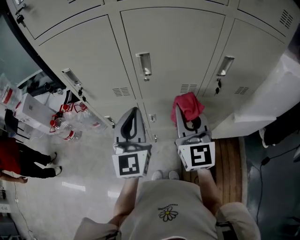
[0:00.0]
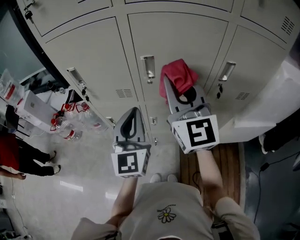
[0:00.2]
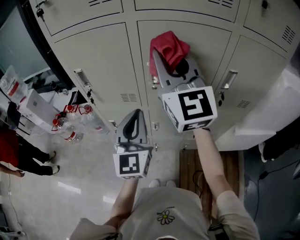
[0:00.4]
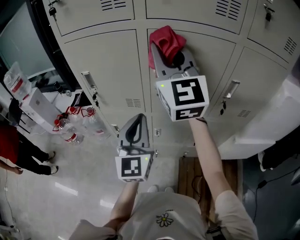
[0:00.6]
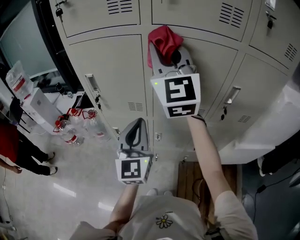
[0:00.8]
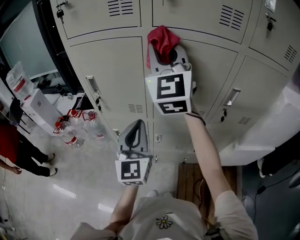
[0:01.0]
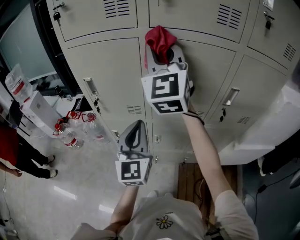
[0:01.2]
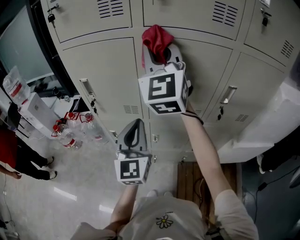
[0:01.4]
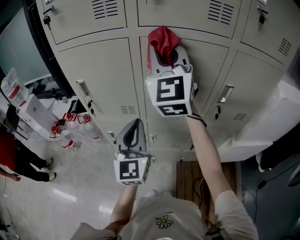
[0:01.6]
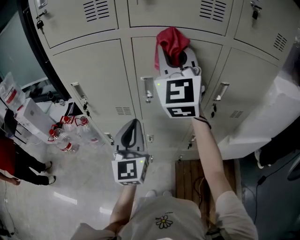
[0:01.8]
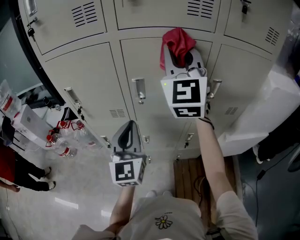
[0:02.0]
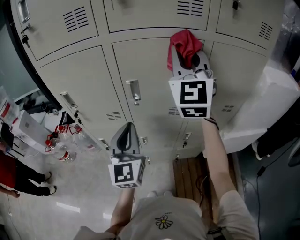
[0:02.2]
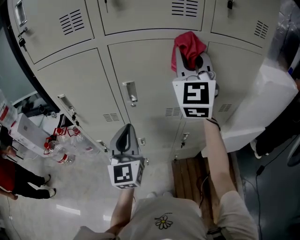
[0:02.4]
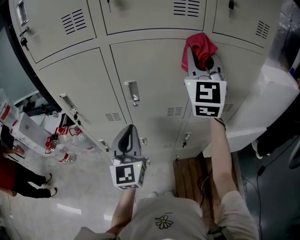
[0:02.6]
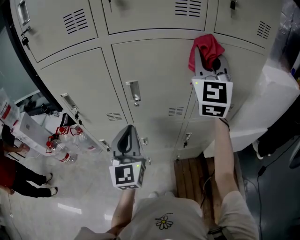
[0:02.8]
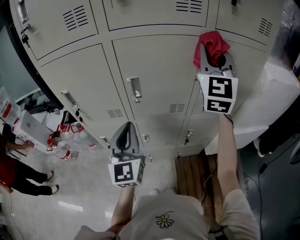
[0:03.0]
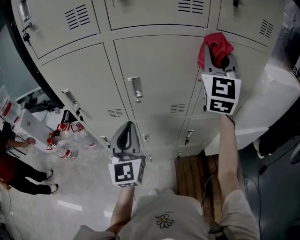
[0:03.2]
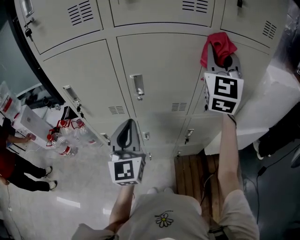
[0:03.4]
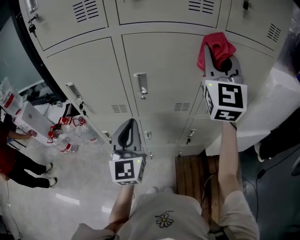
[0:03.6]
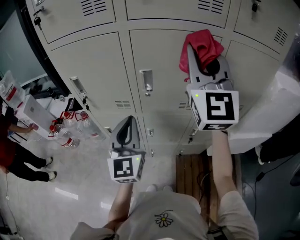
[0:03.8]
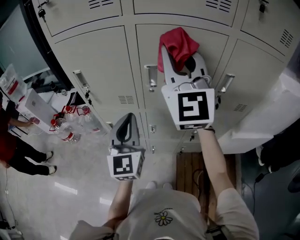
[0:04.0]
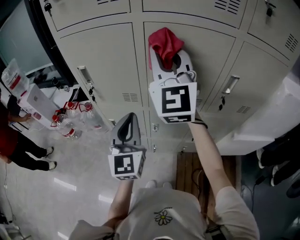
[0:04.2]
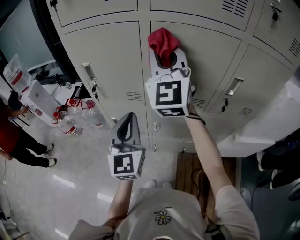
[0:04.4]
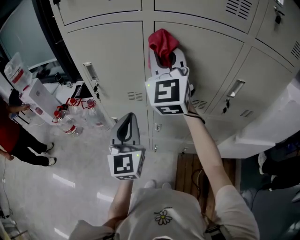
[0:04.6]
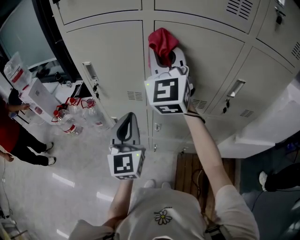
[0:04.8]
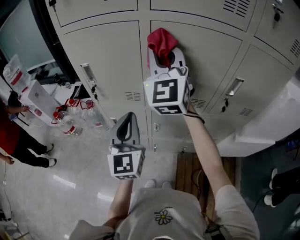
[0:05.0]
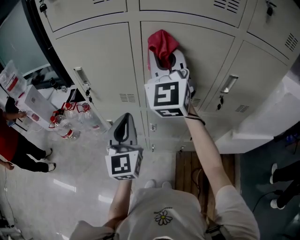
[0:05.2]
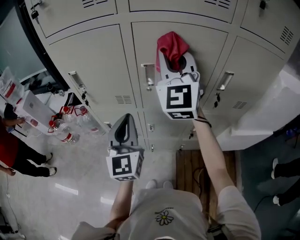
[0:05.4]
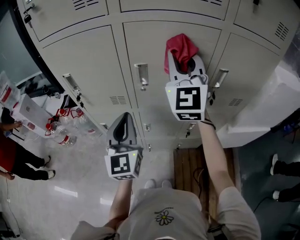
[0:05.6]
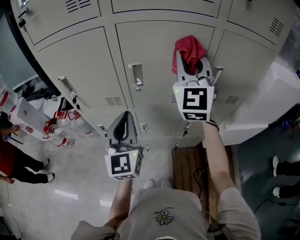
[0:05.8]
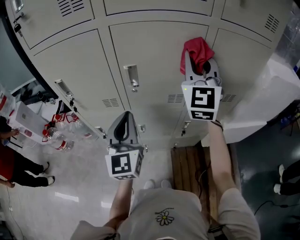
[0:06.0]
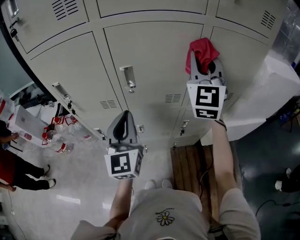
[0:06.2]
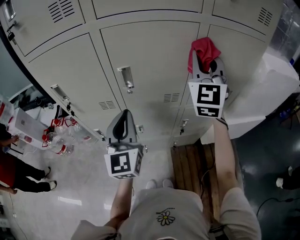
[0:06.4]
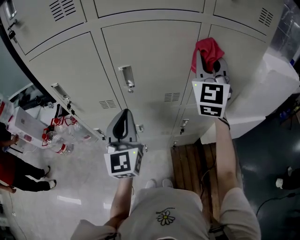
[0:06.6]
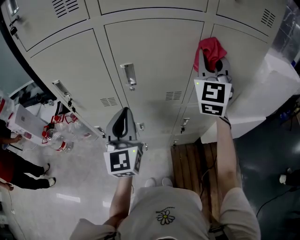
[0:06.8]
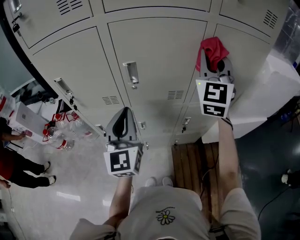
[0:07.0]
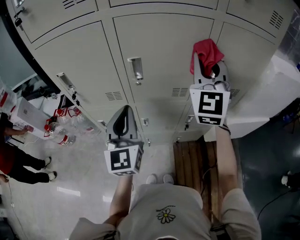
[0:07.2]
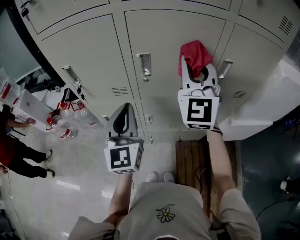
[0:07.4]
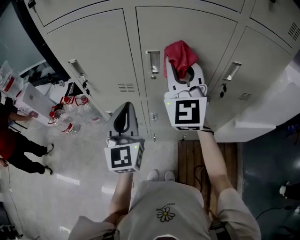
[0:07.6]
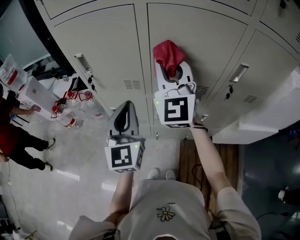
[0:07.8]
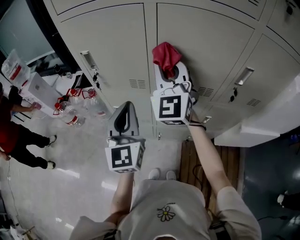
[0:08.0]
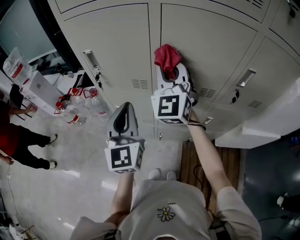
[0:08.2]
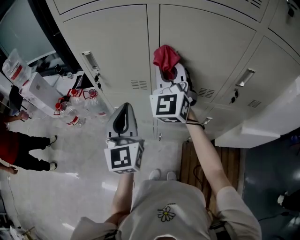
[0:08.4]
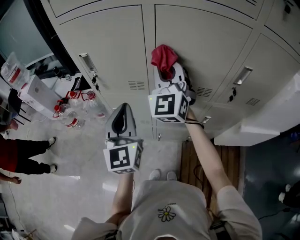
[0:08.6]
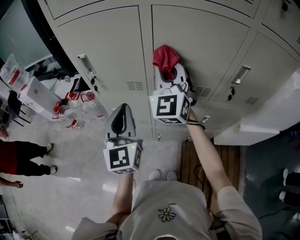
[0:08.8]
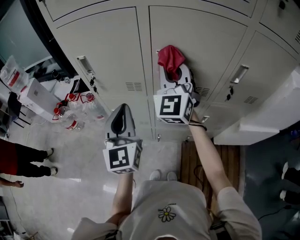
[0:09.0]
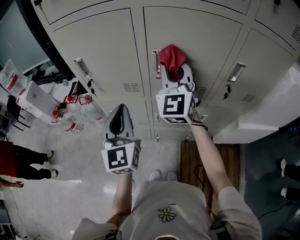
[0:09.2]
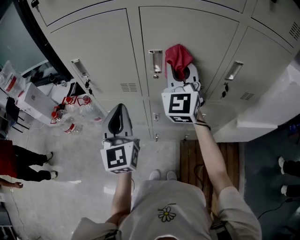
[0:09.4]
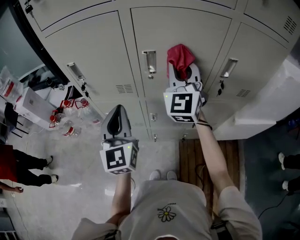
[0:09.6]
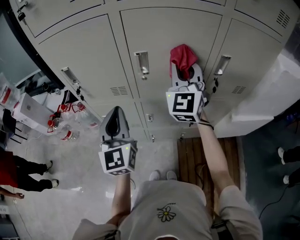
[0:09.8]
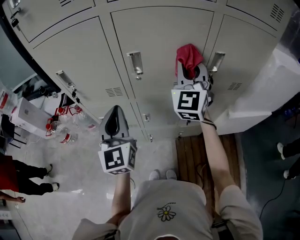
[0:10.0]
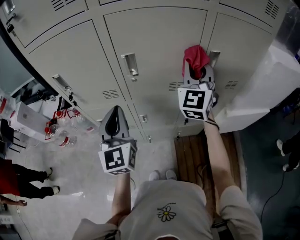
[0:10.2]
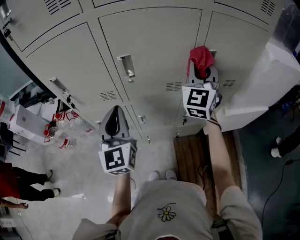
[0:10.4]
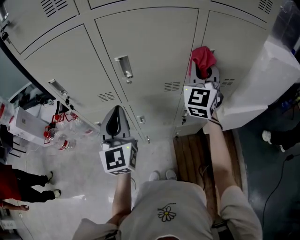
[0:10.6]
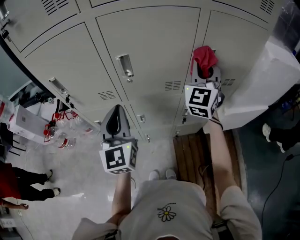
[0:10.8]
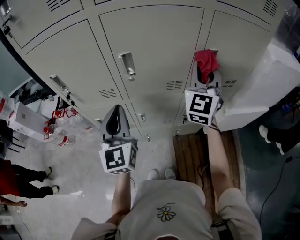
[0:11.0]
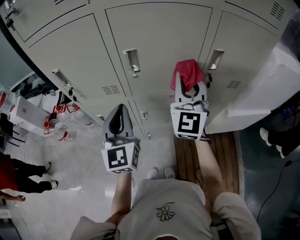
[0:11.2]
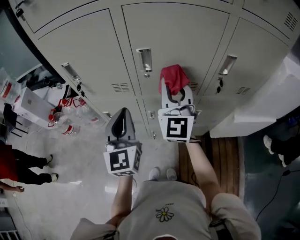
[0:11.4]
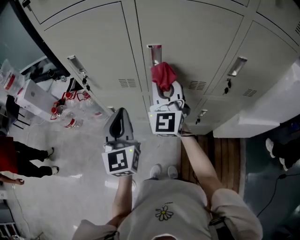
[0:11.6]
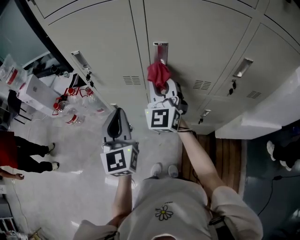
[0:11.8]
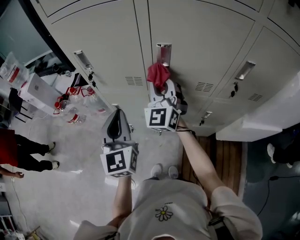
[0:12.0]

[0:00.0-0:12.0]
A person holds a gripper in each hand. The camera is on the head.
0:00.0 to 0:01.6: The right gripper goes some 25 cm upward and forward, and swivels approximately 20 degrees.
0:01.6 to 0:03.0: The right gripper heads to the right, covering some 20 cm, and swivels approximately 20 degrees.
0:03.0 to 0:04.4: The left gripper heads to the left, covering roughly 5 cm, while the right gripper goes roughly 25 cm to the left, and swivels roughly 20 degrees.
0:04.4 to 0:06.0: The right gripper is displaced to the right by about 20 cm; the left gripper shifts roughly 5 cm to the right.
0:06.0 to 0:07.6: The right gripper travels to the left by approximately 15 cm, while the left gripper heads to the left, covering some 5 cm.
0:07.6 to 0:09.0: The right gripper moves roughly 5 cm.
0:09.0 to 0:10.4: The right gripper heads to the right, covering roughly 20 cm, and rotates some 20 degrees; the left gripper goes about 5 cm to the right.
0:10.4 to 0:12.0: The left gripper travels to the left by approximately 10 cm. The right gripper is displaced to the left by about 25 cm, and changes its angle by approximately 30 degrees.

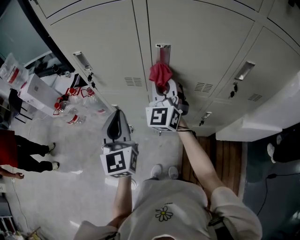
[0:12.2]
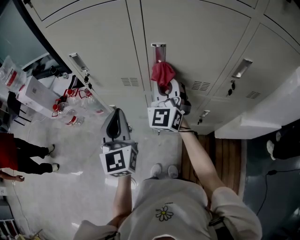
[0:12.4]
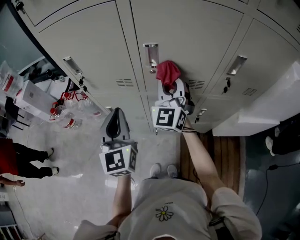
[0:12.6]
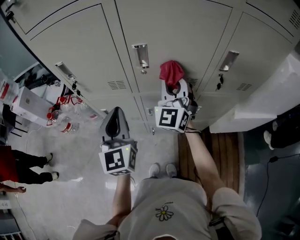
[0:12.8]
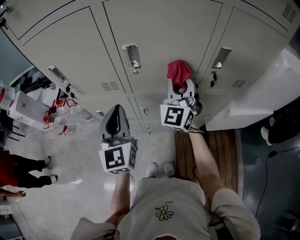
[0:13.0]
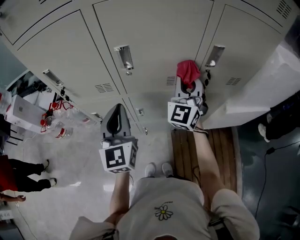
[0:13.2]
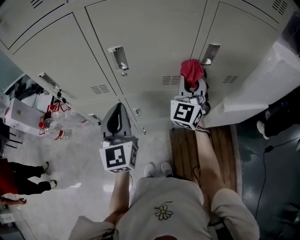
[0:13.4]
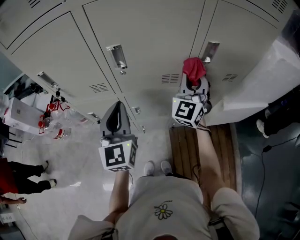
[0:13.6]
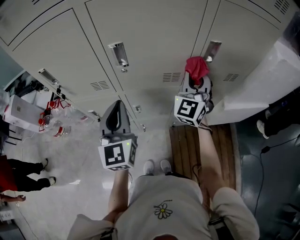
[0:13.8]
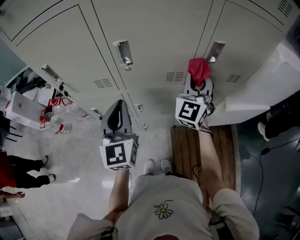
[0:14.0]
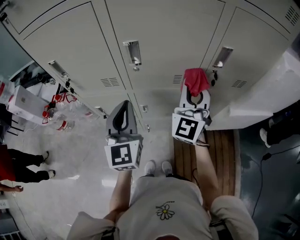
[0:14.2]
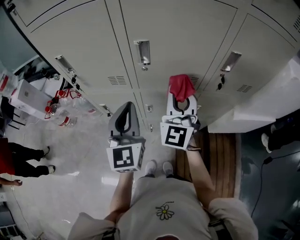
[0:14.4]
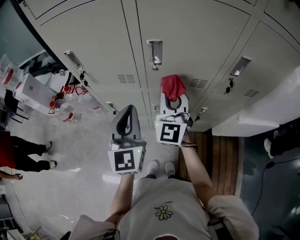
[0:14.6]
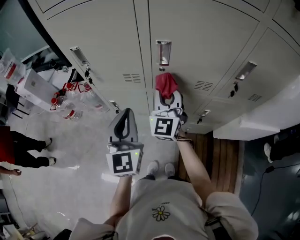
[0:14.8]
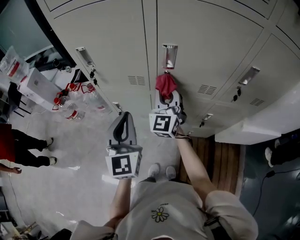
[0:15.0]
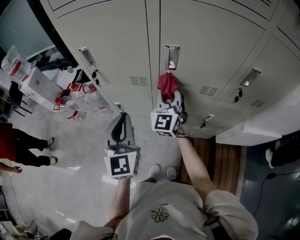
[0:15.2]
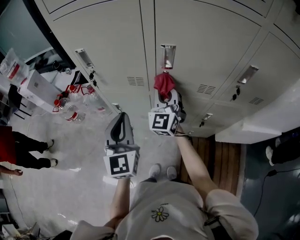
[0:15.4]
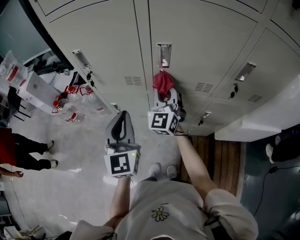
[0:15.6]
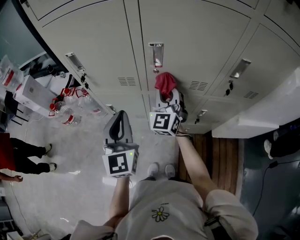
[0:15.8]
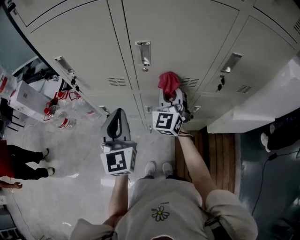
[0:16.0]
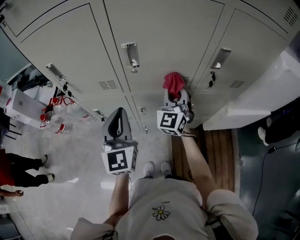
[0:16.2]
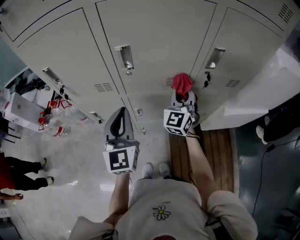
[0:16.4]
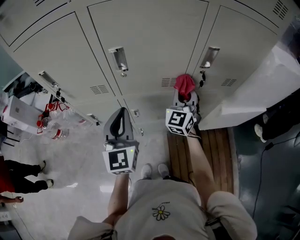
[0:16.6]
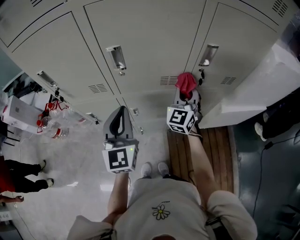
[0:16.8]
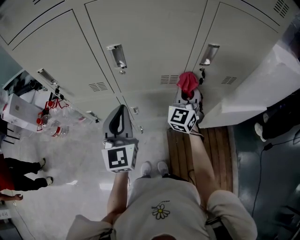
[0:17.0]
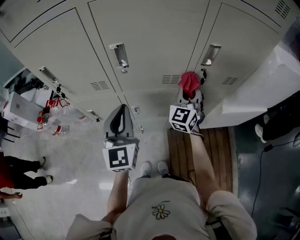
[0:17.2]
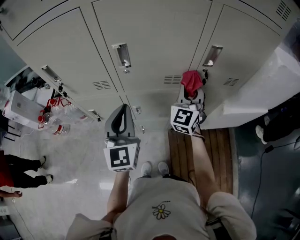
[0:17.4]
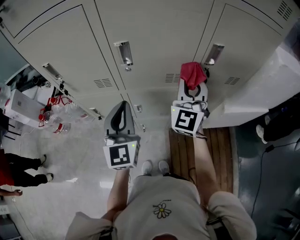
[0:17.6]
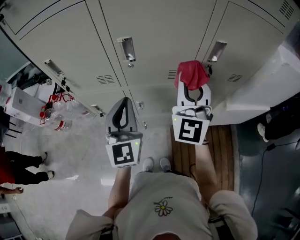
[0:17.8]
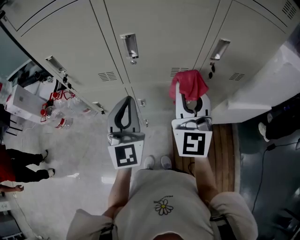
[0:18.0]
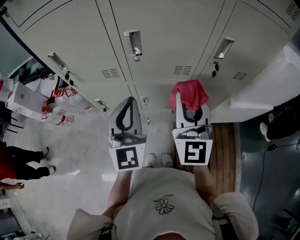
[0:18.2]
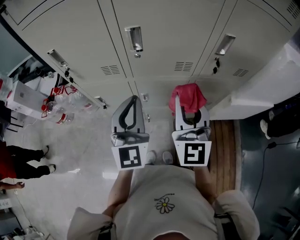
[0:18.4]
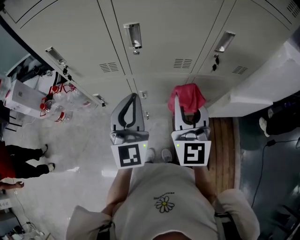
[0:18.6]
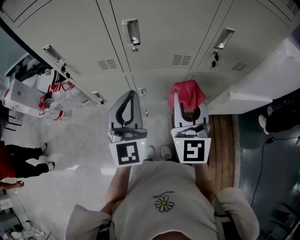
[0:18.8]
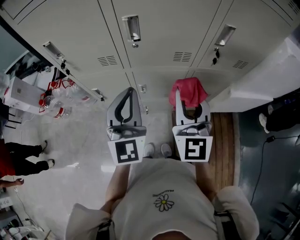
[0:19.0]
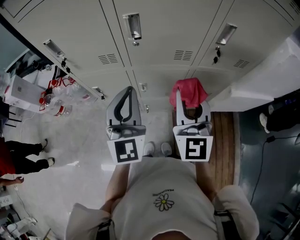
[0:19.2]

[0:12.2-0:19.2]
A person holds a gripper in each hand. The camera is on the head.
0:12.2 to 0:13.6: The left gripper moves to the right, some 10 cm. Meanwhile the right gripper goes about 25 cm to the right, and changes its angle by some 30 degrees.
0:13.6 to 0:15.0: The left gripper heads to the left, covering roughly 10 cm. The right gripper travels to the left by some 25 cm, and turns by approximately 30 degrees.
0:15.0 to 0:16.4: The left gripper shifts some 10 cm to the right. Meanwhile the right gripper goes some 20 cm to the right, and swivels approximately 20 degrees.
0:16.4 to 0:17.8: The right gripper moves upward and backward, roughly 15 cm.
0:17.8 to 0:19.2: The right gripper goes roughly 10 cm backward and downward, and changes its angle by roughly 20 degrees.

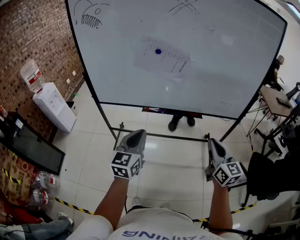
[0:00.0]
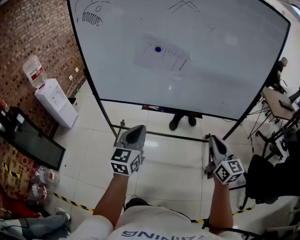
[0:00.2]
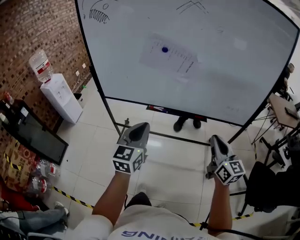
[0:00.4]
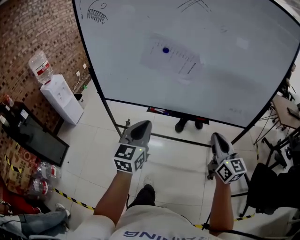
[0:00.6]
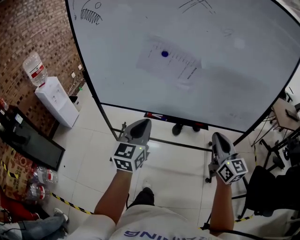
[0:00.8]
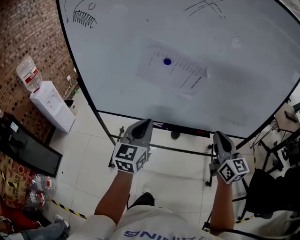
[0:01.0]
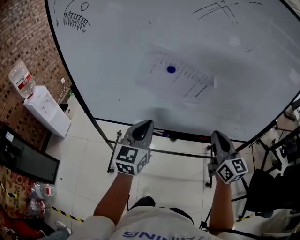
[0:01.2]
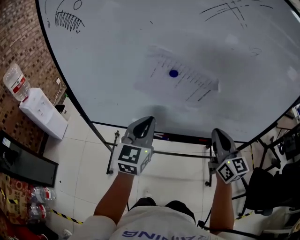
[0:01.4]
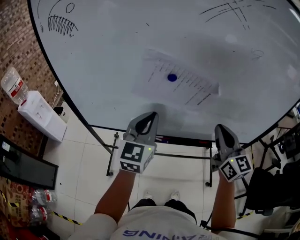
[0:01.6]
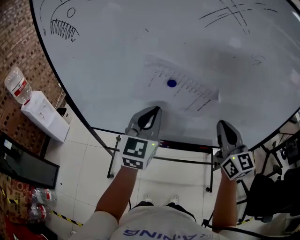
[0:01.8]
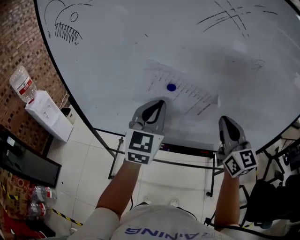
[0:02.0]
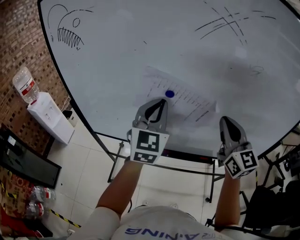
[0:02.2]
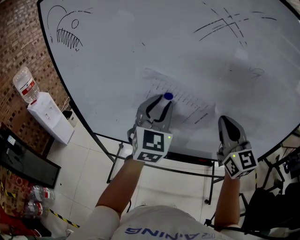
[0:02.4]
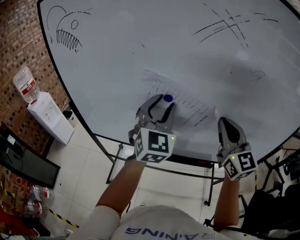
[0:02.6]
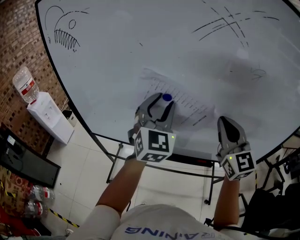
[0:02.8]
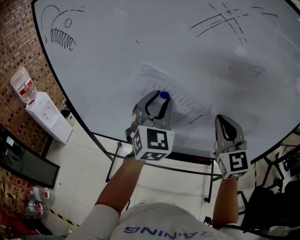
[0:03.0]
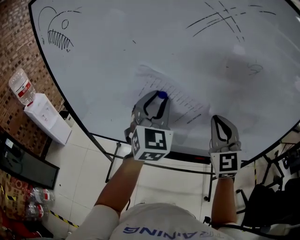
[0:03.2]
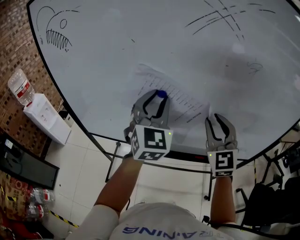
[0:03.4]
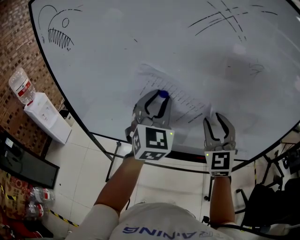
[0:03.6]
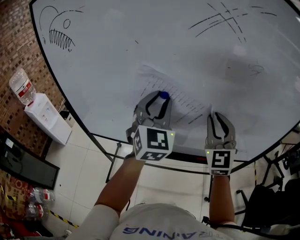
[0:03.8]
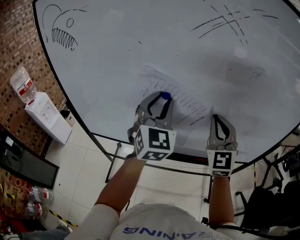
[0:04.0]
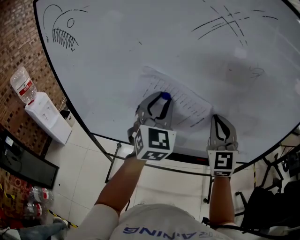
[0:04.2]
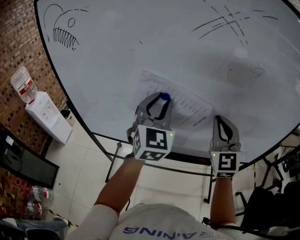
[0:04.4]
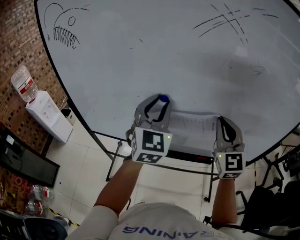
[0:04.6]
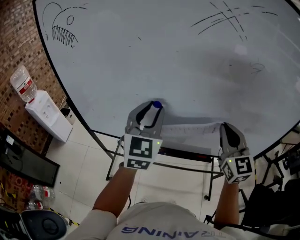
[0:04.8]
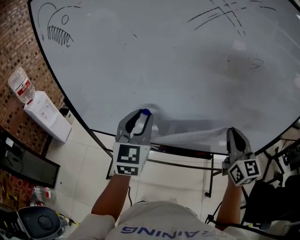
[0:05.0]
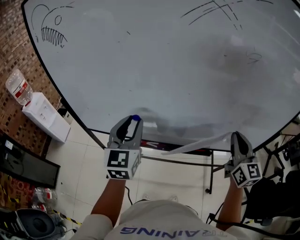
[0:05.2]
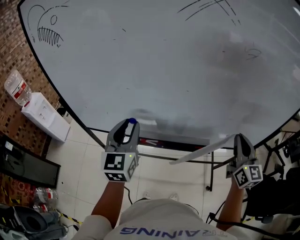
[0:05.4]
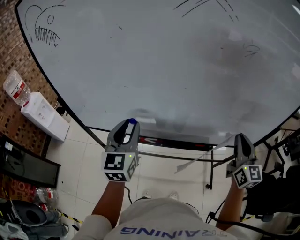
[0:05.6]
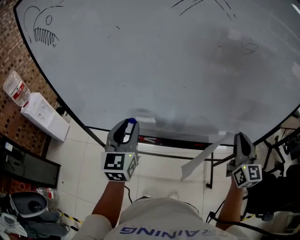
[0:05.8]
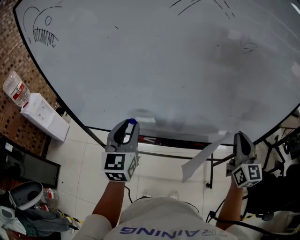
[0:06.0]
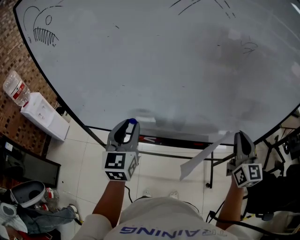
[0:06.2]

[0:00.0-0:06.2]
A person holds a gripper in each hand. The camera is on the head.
0:00.0 to 0:01.6: The two grippers go roughly 30 cm forward.
0:01.6 to 0:03.2: The right gripper is displaced forward and upward by about 10 cm, and changes its angle by about 30 degrees; the left gripper travels upward, forward and to the right by about 15 cm, turns by about 30 degrees, and opens its fingers.
0:03.2 to 0:04.6: The right gripper opens, then closes once more.
0:04.6 to 0:06.2: The right gripper travels to the right, downward and backward by roughly 15 cm, and rotates roughly 20 degrees, while the left gripper travels downward, backward and to the left by approximately 15 cm, and swivels about 20 degrees.
